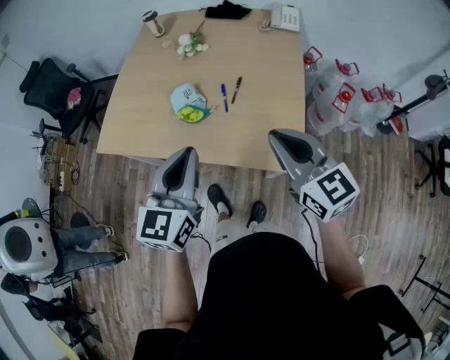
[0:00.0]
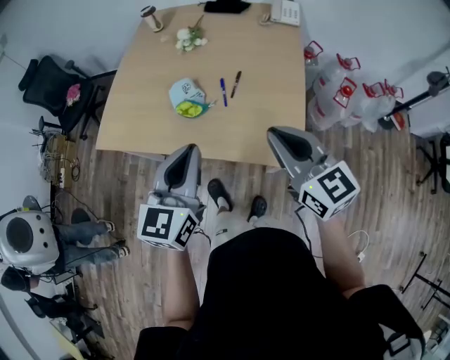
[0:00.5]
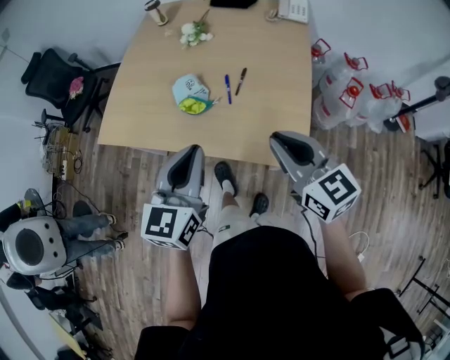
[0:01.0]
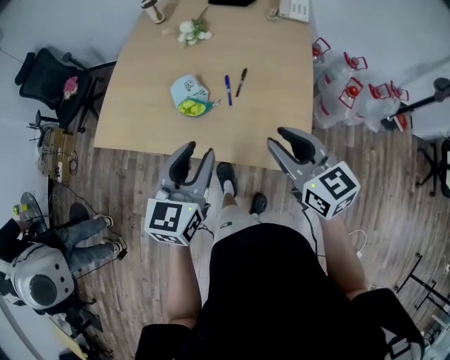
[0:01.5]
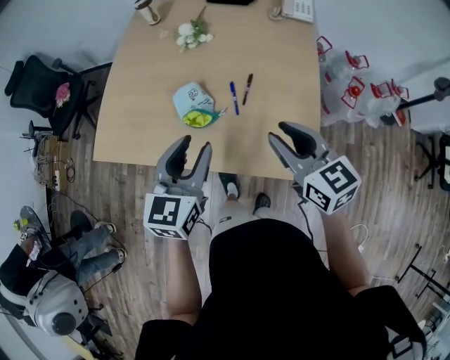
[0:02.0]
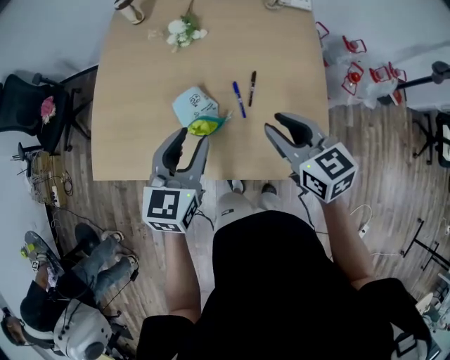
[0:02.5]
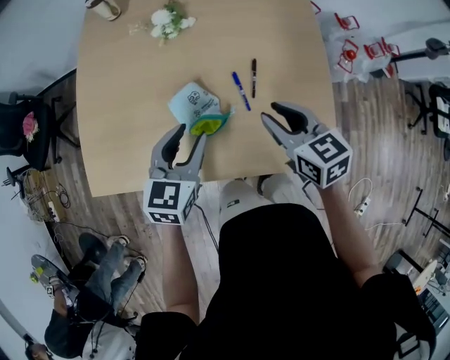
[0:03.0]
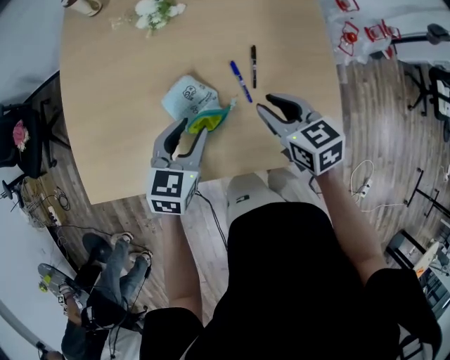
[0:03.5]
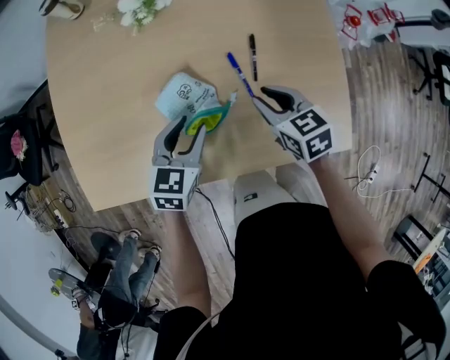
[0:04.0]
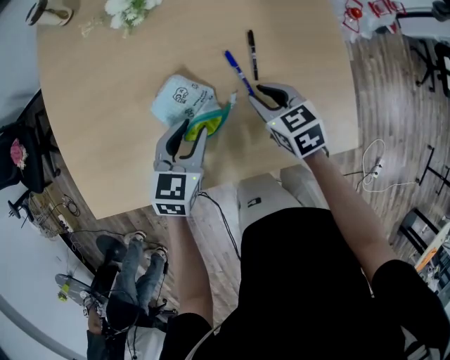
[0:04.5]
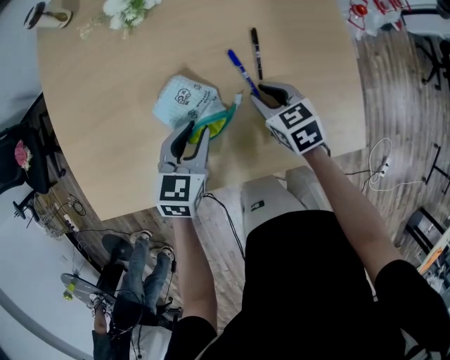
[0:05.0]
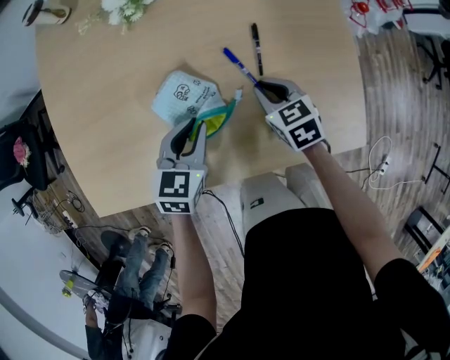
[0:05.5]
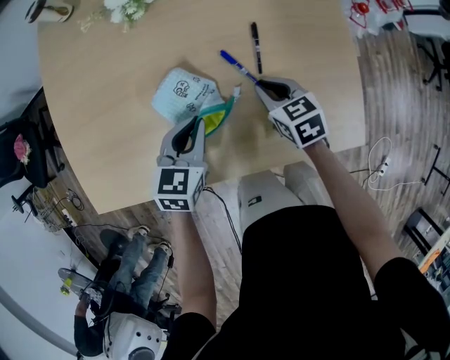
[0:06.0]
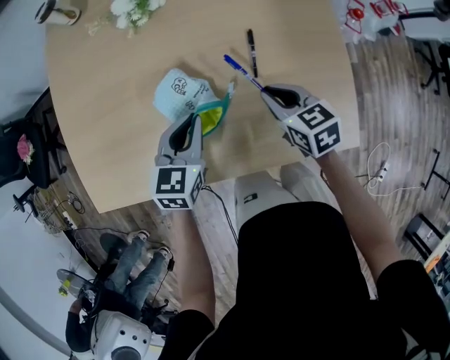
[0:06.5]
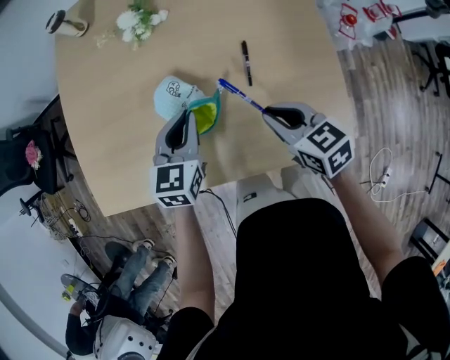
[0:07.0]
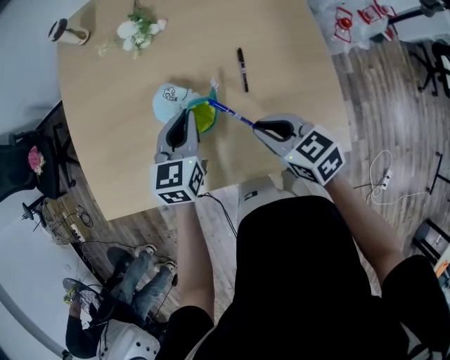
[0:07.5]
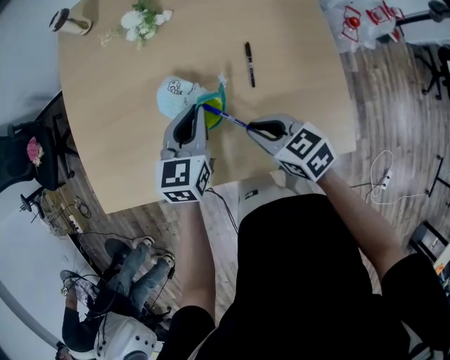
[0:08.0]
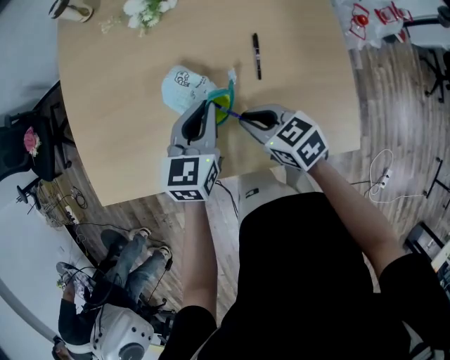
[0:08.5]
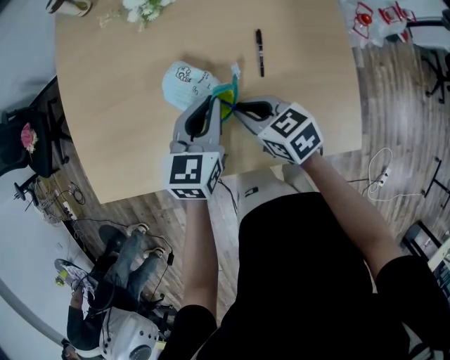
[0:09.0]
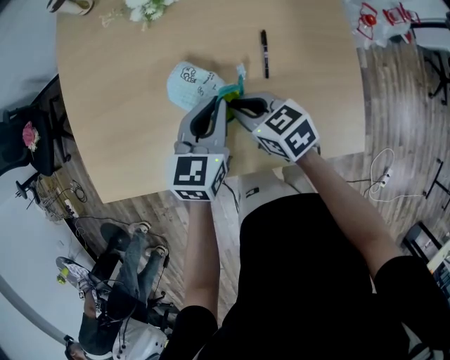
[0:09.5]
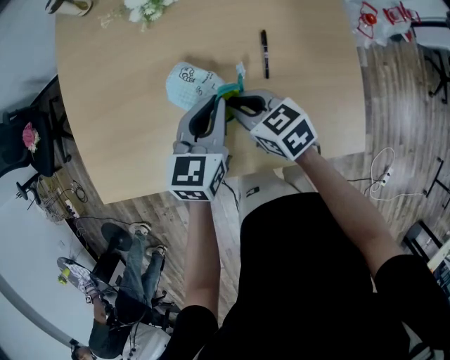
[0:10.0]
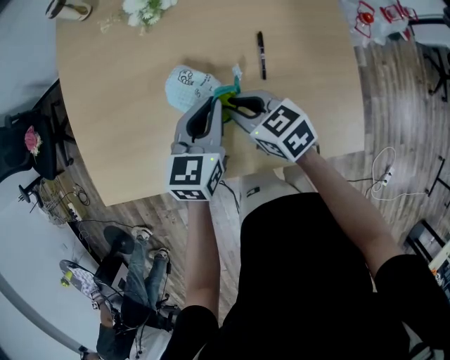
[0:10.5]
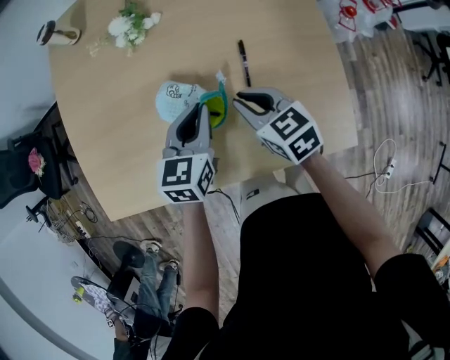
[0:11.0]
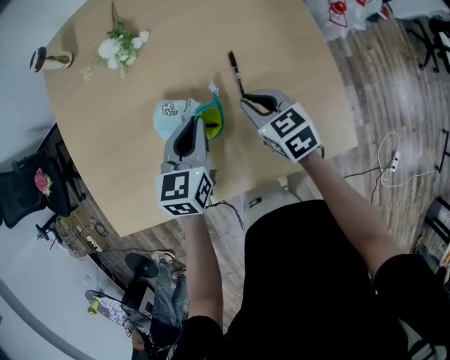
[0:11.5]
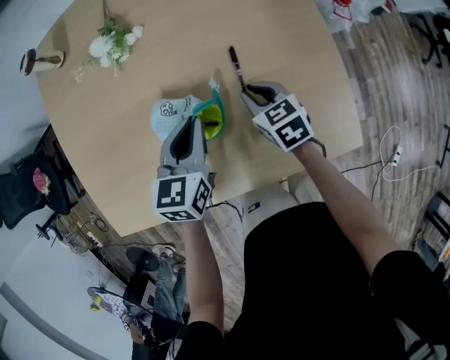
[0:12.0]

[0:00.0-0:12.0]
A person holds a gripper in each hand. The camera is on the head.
0:00.0 to 0:02.0: Both grippers travel together forward and downward, some 15 cm. The right gripper opens its fingers. Meanwhile the left gripper opens its fingers.
0:02.0 to 0:04.0: The two grippers go some 25 cm downward and forward. The left gripper changes its angle by about 30 degrees. The right gripper changes its angle by about 30 degrees.
0:04.0 to 0:06.0: The right gripper heads downward, covering some 5 cm. Meanwhile the left gripper closes its fingers.
0:06.0 to 0:08.0: The right gripper goes about 10 cm upward and backward; the left gripper moves upward, some 10 cm.
0:08.0 to 0:10.0: The right gripper goes about 10 cm forward and to the left.
0:10.0 to 0:12.0: The right gripper shifts some 15 cm to the right and downward, and swivels some 20 degrees.

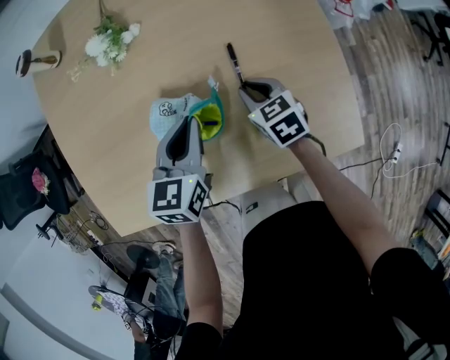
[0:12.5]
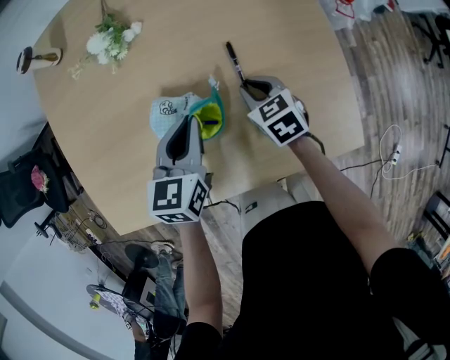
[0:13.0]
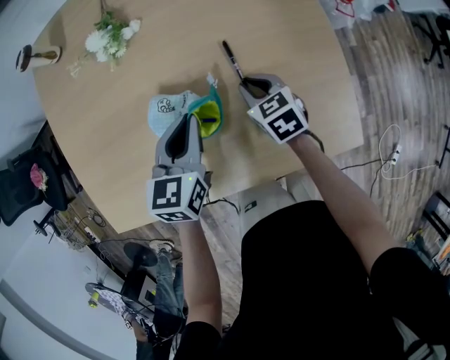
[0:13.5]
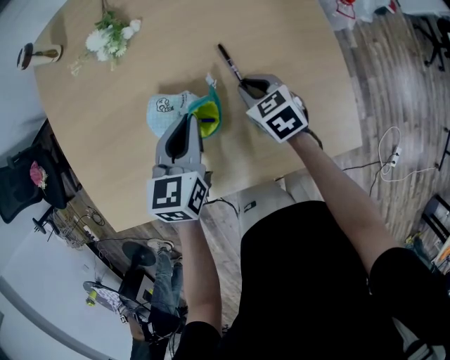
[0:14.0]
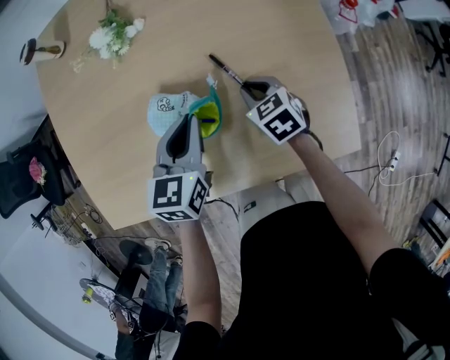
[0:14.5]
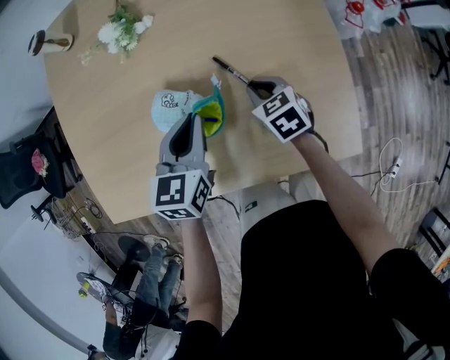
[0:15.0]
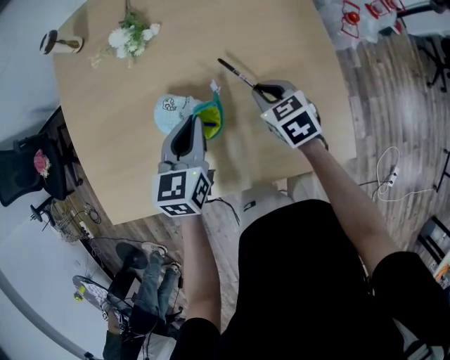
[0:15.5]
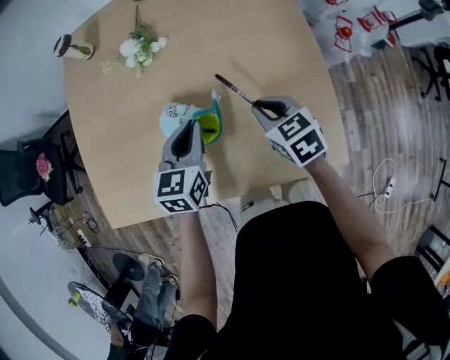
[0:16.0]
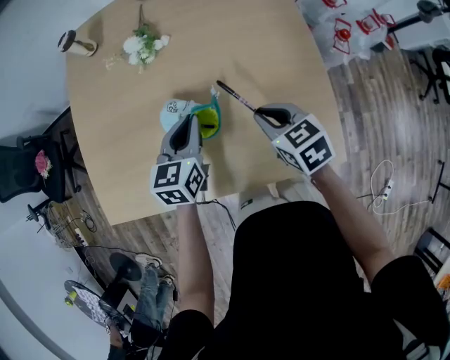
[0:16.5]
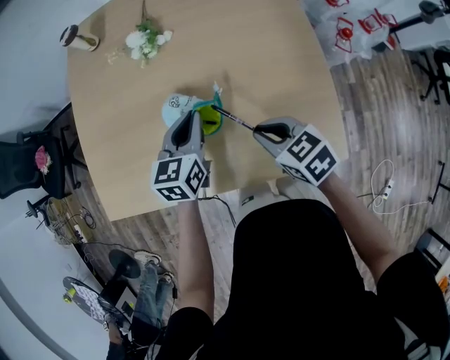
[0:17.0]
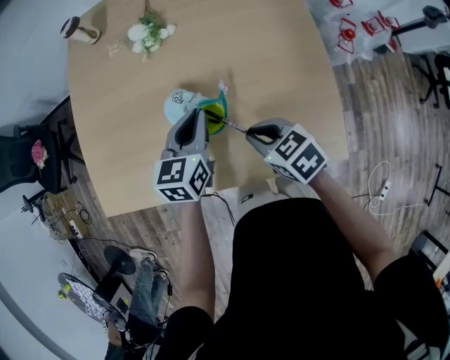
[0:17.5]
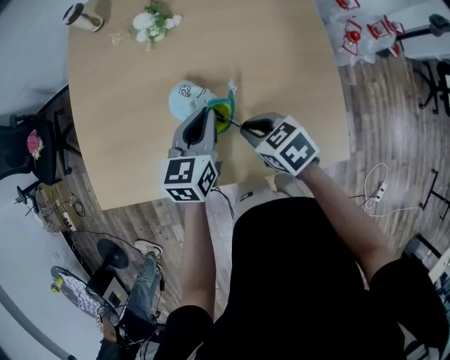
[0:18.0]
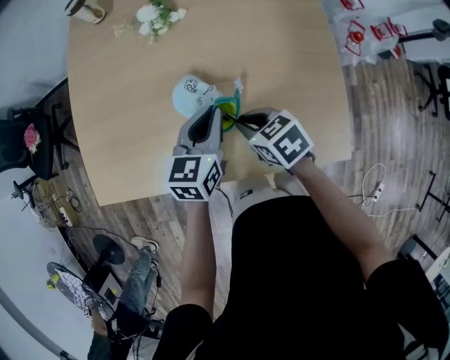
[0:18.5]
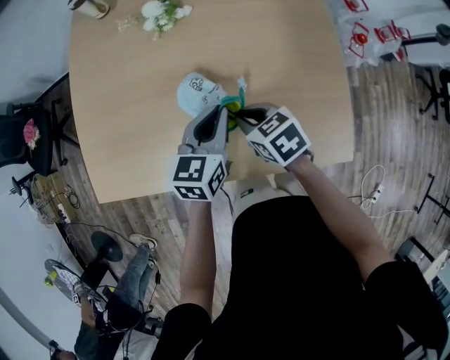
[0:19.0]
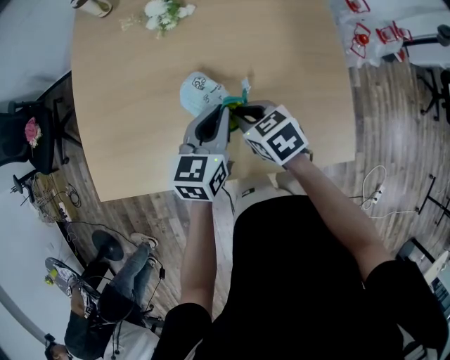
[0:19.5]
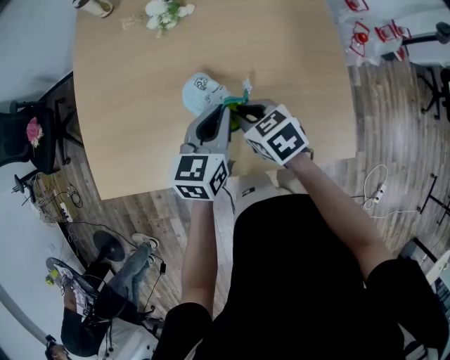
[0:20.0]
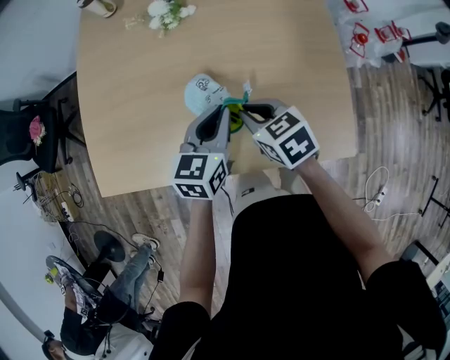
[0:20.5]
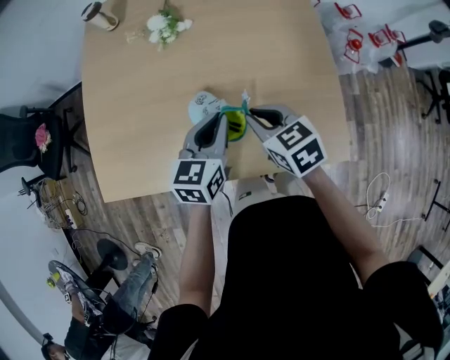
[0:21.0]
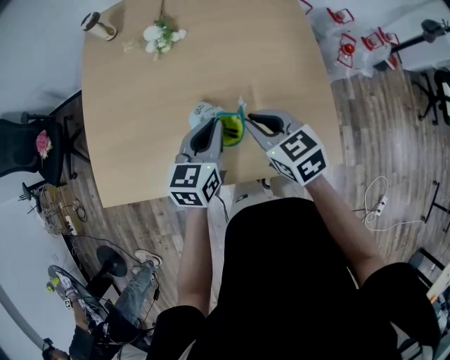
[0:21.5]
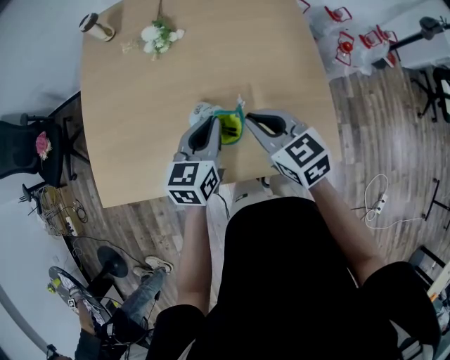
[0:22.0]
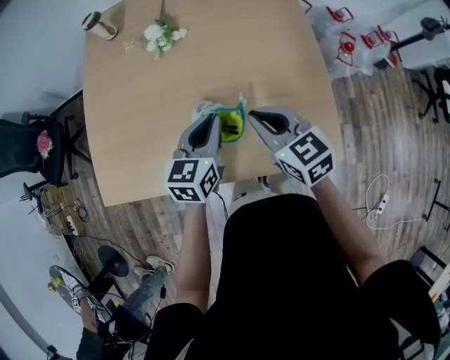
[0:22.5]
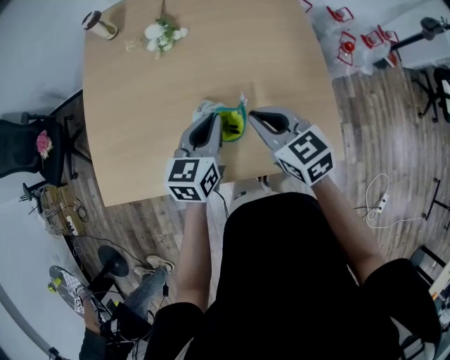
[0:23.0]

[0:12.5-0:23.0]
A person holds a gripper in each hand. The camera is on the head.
0:12.5 to 0:14.5: The grippers make only small movements.
0:14.5 to 0:16.5: The right gripper goes about 15 cm upward and backward.
0:16.5 to 0:19.0: The right gripper goes roughly 10 cm to the left and downward.
0:19.0 to 0:21.0: The right gripper travels upward by about 5 cm.
0:21.0 to 0:23.0: The right gripper travels upward by approximately 5 cm.

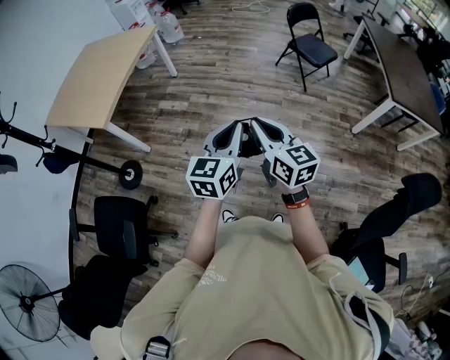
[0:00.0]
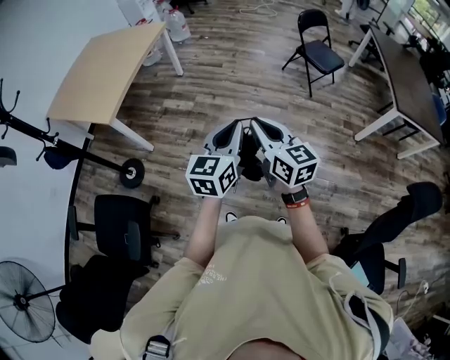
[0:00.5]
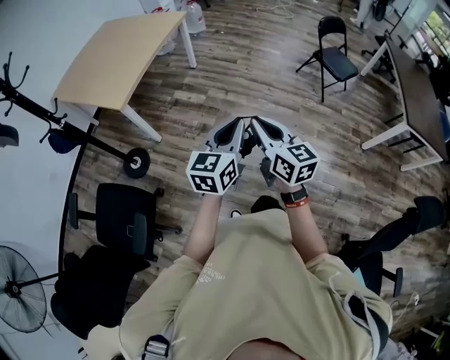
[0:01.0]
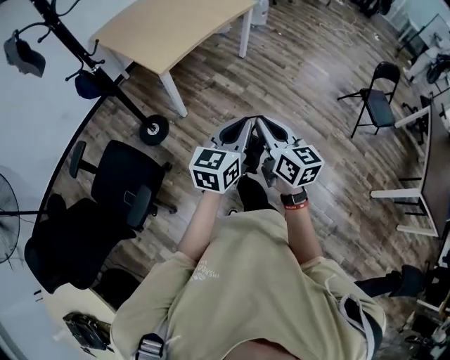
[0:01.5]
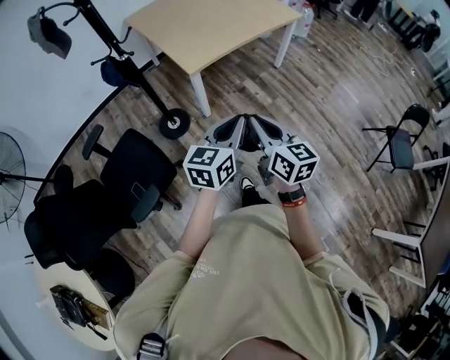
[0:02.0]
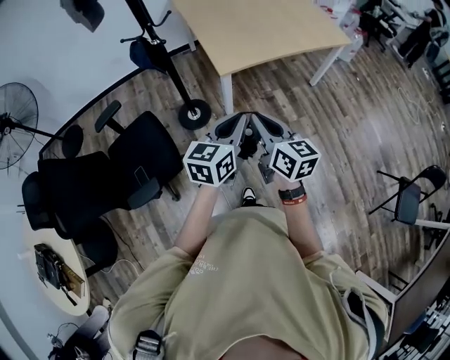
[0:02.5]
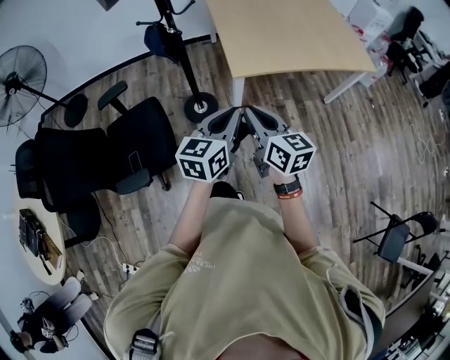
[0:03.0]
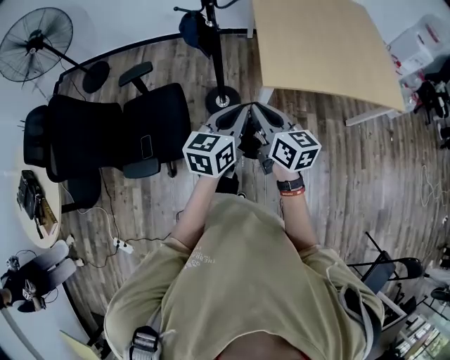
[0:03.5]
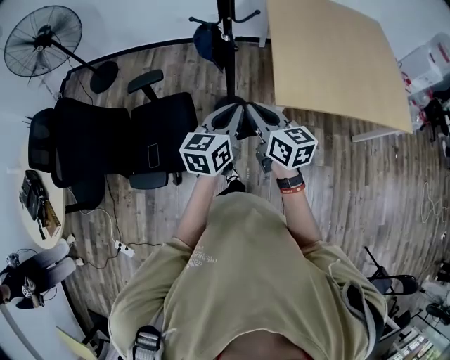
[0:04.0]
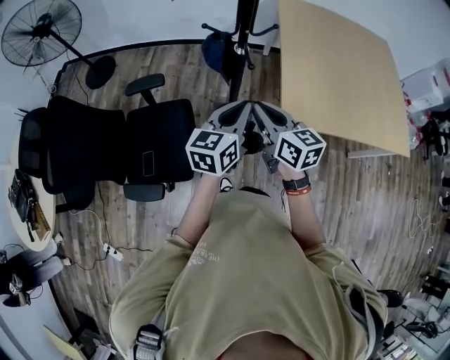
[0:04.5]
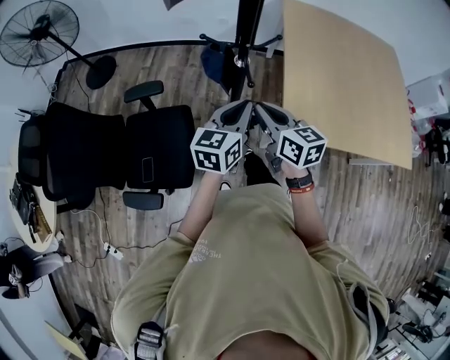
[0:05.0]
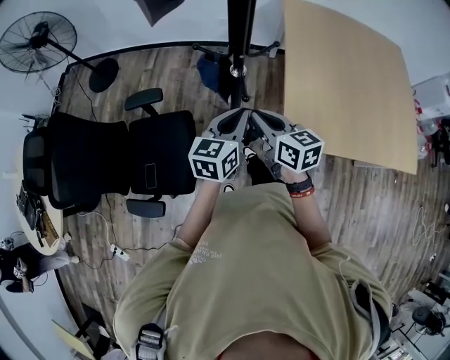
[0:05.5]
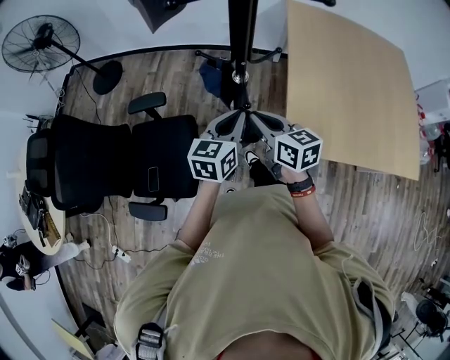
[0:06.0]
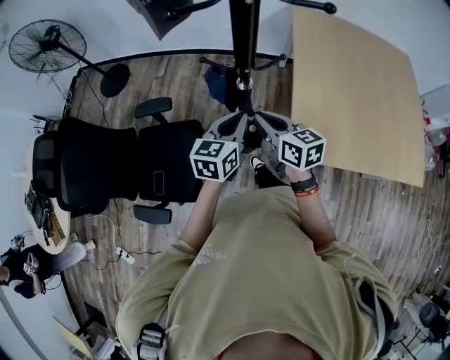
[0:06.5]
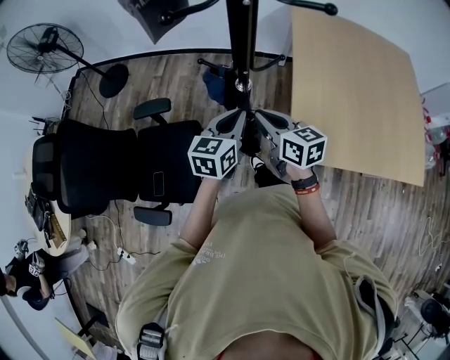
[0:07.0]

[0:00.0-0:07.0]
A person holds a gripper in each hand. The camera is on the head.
0:00.0 to 0:02.0: The two grippers travel together, roughly 50 cm. The right gripper swivels approximately 40 degrees, while the left gripper rotates approximately 30 degrees.
0:02.0 to 0:03.5: The right gripper shifts by some 35 cm, and turns by some 40 degrees. The left gripper moves about 30 cm, and turns by approximately 40 degrees.
0:03.5 to 0:05.0: Both grippers travel together forward, about 30 cm.
0:05.0 to 0:07.0: The grippers both shift forward by roughly 10 cm.
